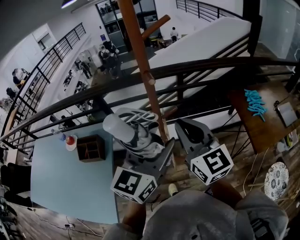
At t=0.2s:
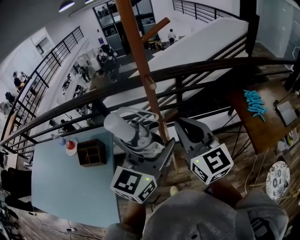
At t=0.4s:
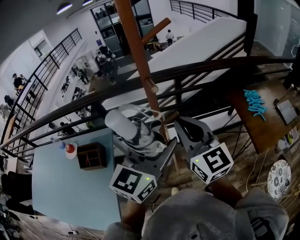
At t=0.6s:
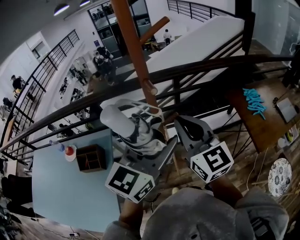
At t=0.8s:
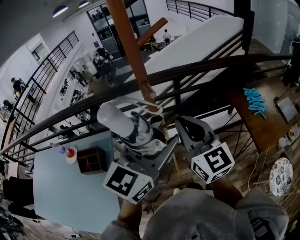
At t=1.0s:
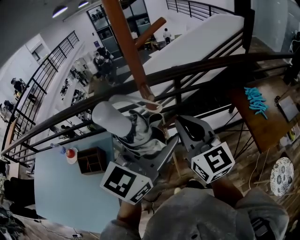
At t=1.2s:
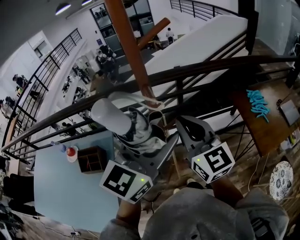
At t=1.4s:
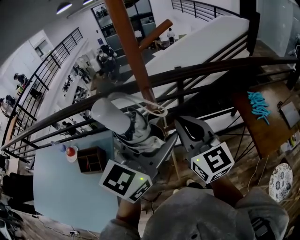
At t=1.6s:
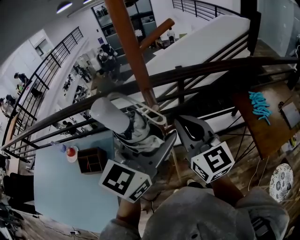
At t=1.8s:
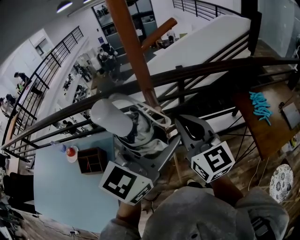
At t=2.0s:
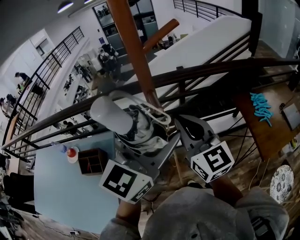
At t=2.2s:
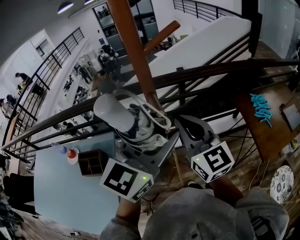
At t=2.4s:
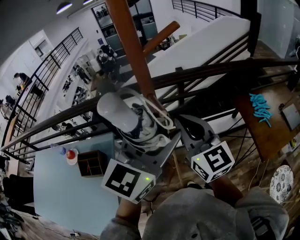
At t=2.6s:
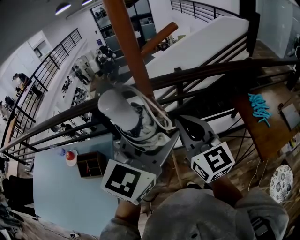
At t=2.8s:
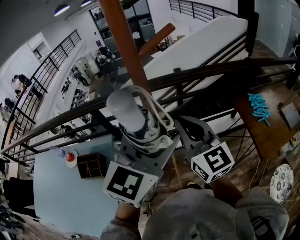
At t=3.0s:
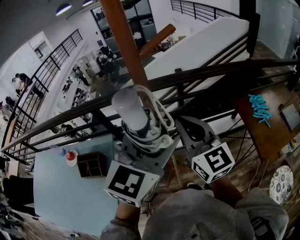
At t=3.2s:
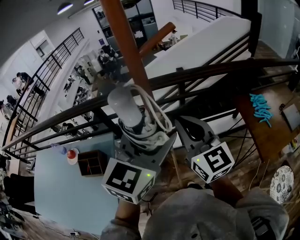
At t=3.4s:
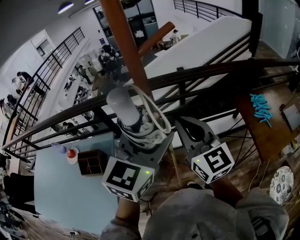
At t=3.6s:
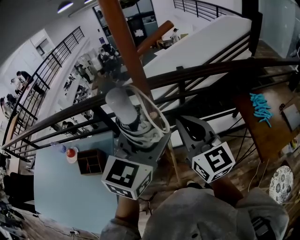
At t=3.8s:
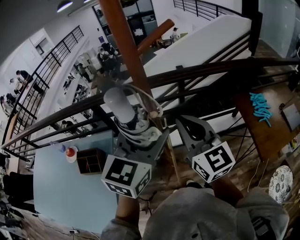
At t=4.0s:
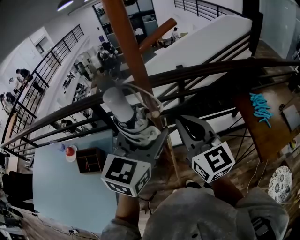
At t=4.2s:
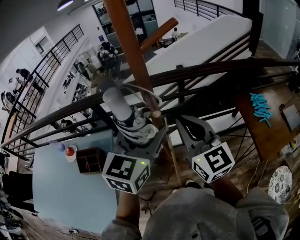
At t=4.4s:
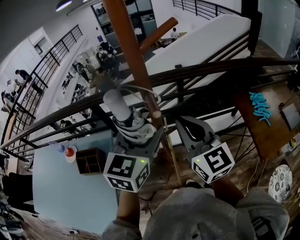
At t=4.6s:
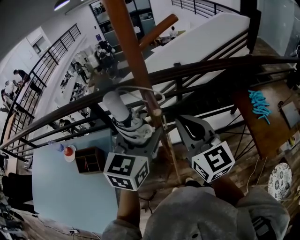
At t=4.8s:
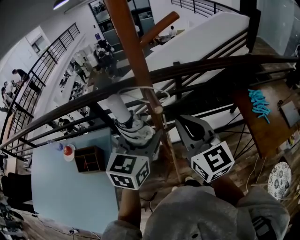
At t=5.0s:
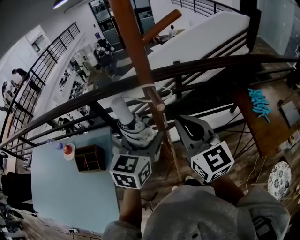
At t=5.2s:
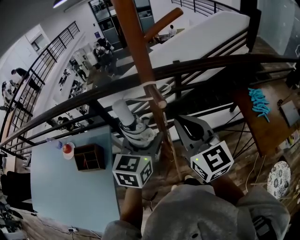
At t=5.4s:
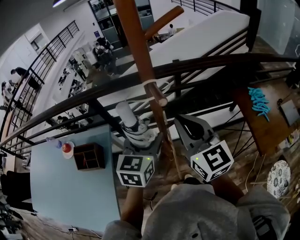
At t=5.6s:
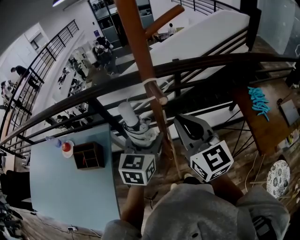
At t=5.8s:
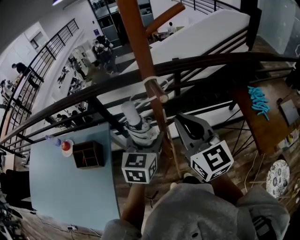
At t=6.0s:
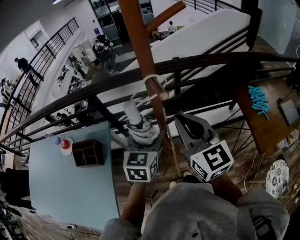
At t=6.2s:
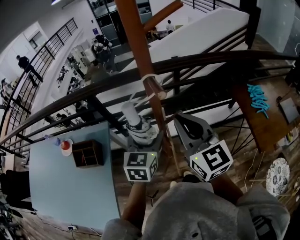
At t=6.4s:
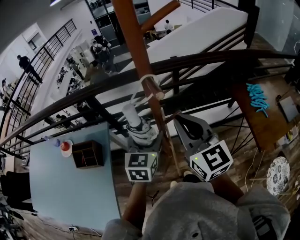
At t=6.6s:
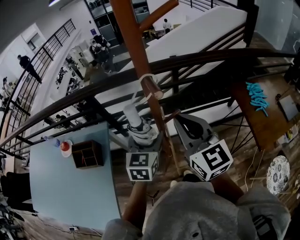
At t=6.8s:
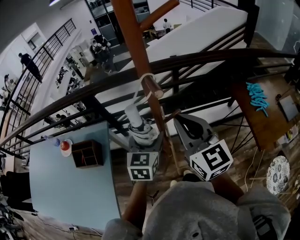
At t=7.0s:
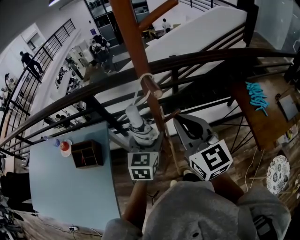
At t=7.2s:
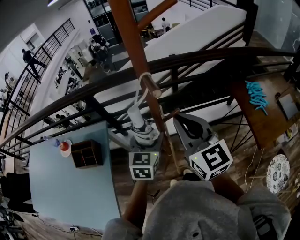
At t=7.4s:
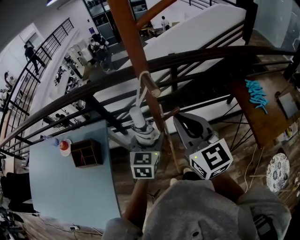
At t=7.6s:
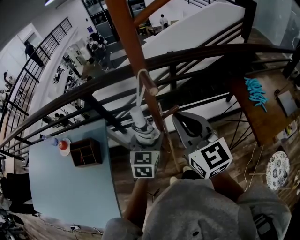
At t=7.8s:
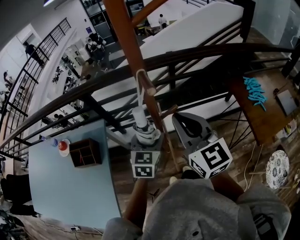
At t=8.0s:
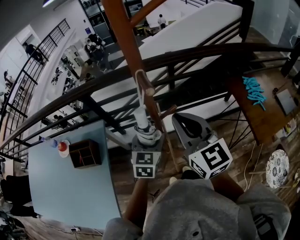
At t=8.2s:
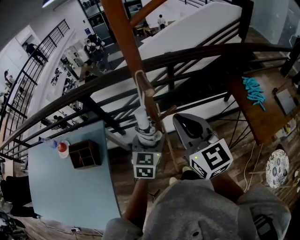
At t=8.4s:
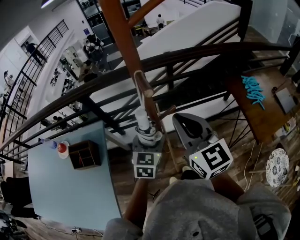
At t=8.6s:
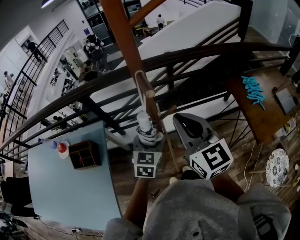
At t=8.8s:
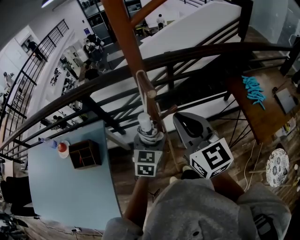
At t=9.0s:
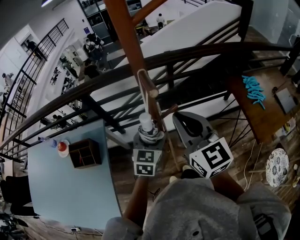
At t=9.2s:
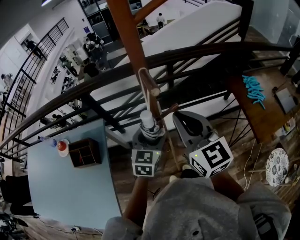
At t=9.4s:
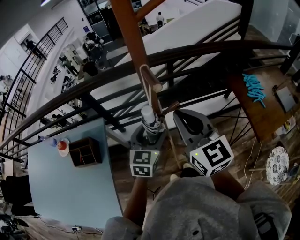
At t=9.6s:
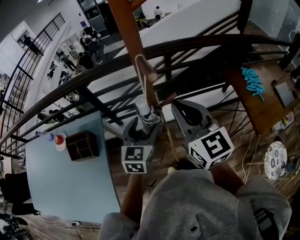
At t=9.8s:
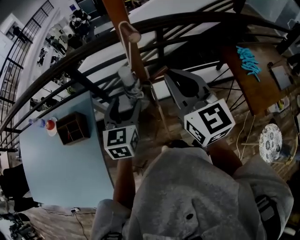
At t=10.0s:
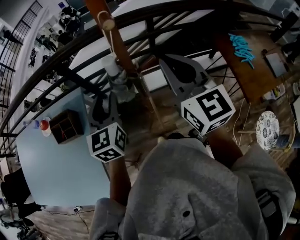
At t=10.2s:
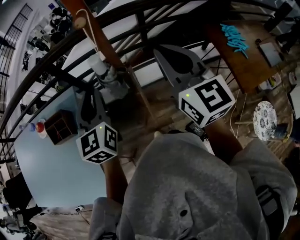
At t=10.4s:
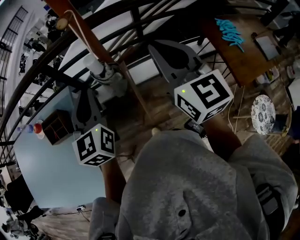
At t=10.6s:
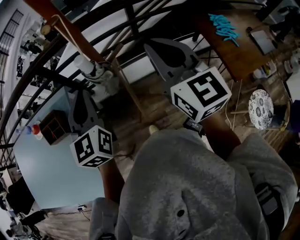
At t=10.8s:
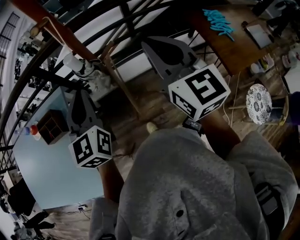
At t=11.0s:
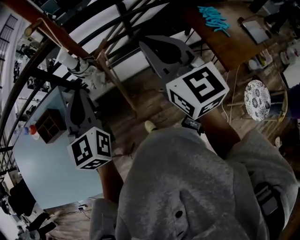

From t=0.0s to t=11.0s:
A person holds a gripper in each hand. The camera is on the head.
From t=0.0s to t=1.6s: The grippers both shift forward by roughly 10 cm.
From t=1.6s to t=3.2s: The grippers make only small movements.
From t=3.2s to t=4.8s: The left gripper shifts approximately 10 cm downward.
From t=4.8s to t=6.2s: The left gripper moves downward, roughly 10 cm.
From t=6.2s to t=7.8s: The left gripper moves downward, about 5 cm.
From t=7.8s to t=9.4s: The grippers move only a little.
From t=9.4s to t=11.0s: The right gripper moves to the right and backward, approximately 15 cm; the left gripper is displaced backward and upward by roughly 15 cm, changes its angle by roughly 20 degrees, and closes up.

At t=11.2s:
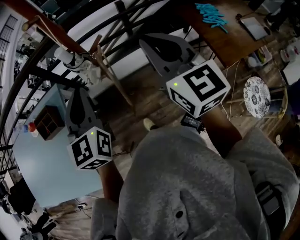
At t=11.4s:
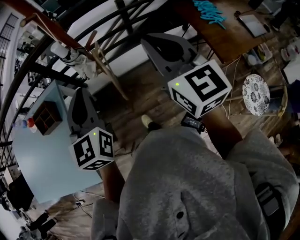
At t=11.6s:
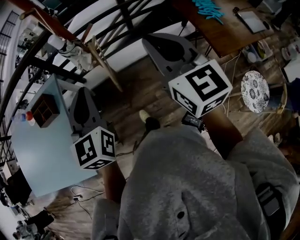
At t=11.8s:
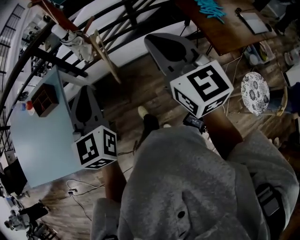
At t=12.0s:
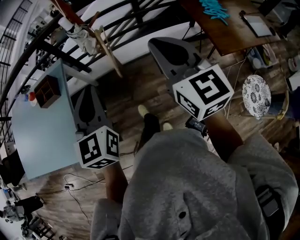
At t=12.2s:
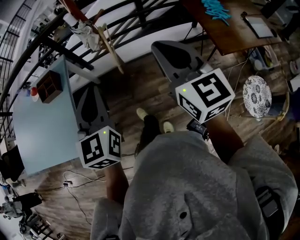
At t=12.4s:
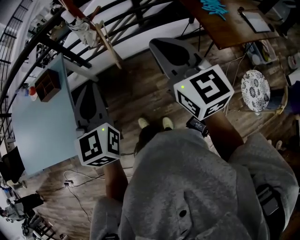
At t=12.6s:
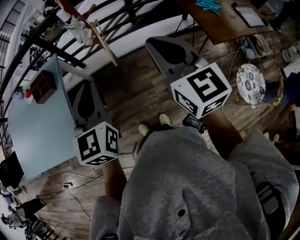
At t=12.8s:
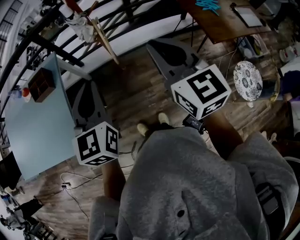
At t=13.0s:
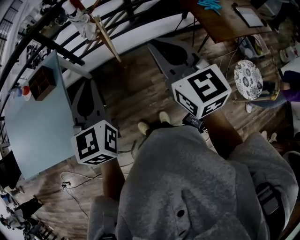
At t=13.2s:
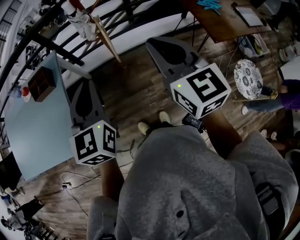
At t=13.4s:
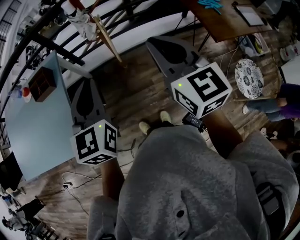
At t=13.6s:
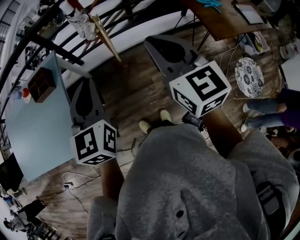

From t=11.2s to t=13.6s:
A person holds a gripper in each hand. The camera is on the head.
From t=11.2s to t=12.4s: Both grippers move backward, approximately 20 cm.
From t=12.4s to t=13.6s: The right gripper heads to the left, covering some 5 cm.

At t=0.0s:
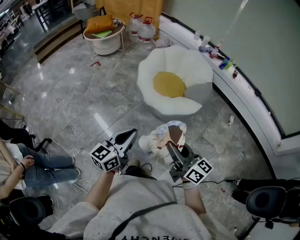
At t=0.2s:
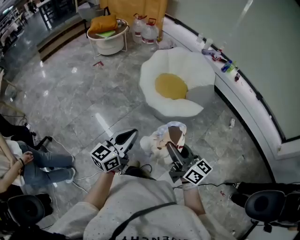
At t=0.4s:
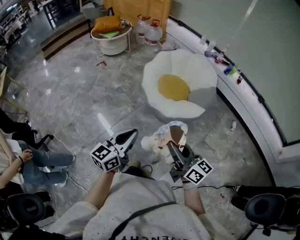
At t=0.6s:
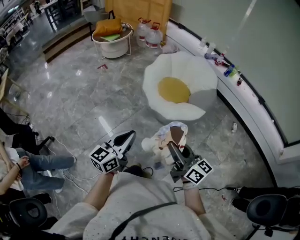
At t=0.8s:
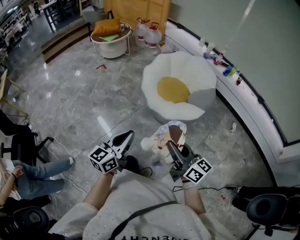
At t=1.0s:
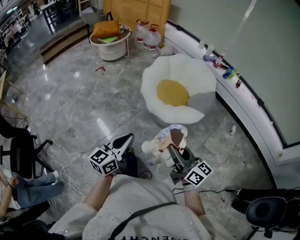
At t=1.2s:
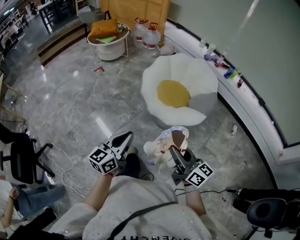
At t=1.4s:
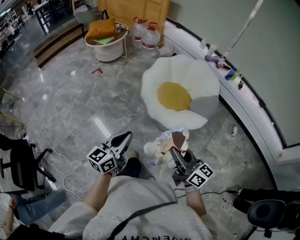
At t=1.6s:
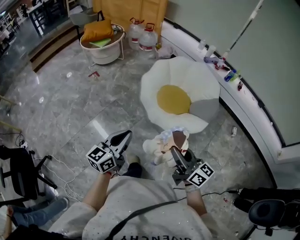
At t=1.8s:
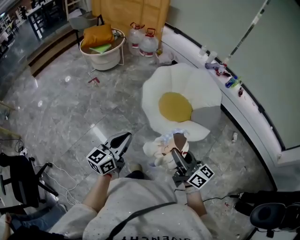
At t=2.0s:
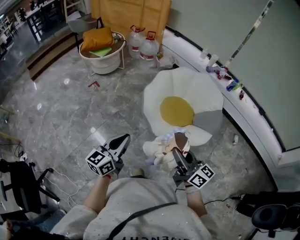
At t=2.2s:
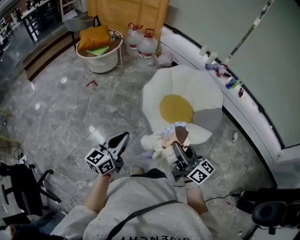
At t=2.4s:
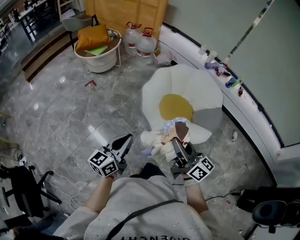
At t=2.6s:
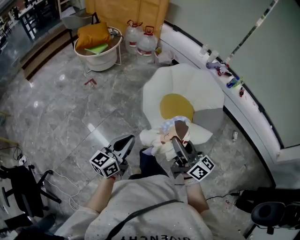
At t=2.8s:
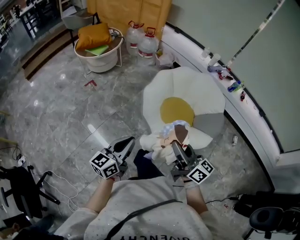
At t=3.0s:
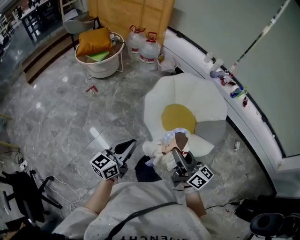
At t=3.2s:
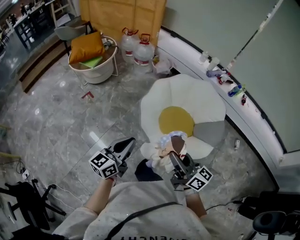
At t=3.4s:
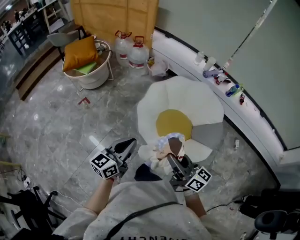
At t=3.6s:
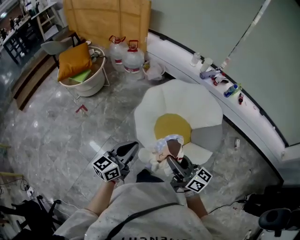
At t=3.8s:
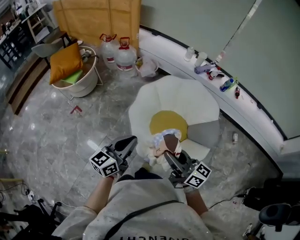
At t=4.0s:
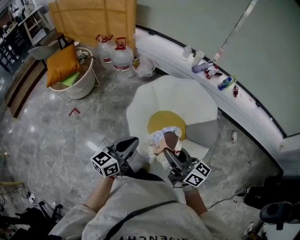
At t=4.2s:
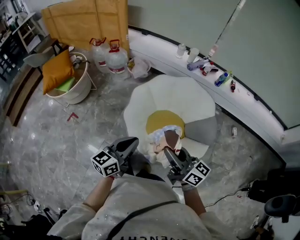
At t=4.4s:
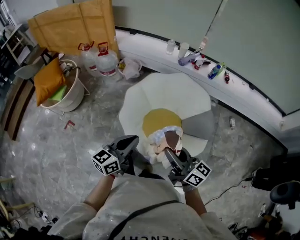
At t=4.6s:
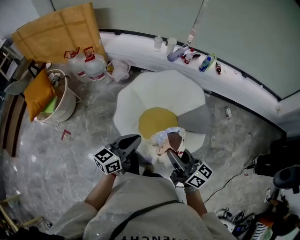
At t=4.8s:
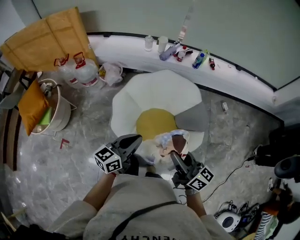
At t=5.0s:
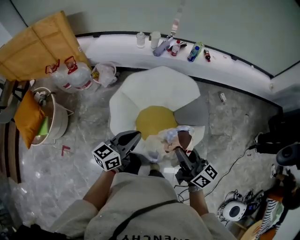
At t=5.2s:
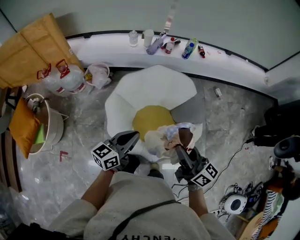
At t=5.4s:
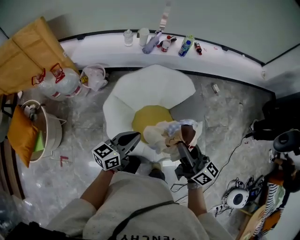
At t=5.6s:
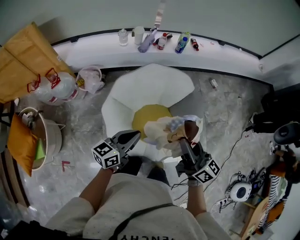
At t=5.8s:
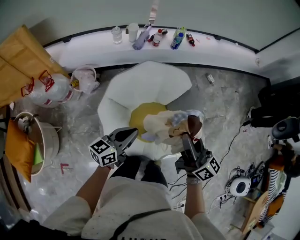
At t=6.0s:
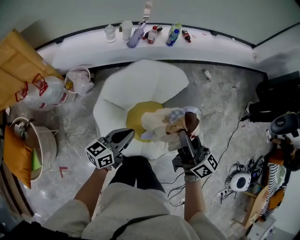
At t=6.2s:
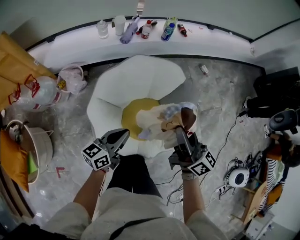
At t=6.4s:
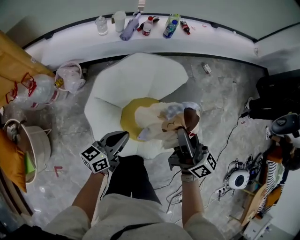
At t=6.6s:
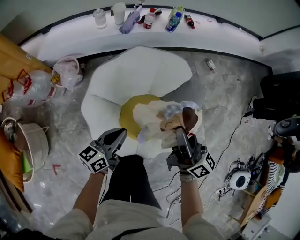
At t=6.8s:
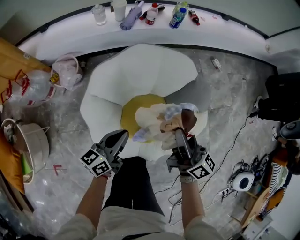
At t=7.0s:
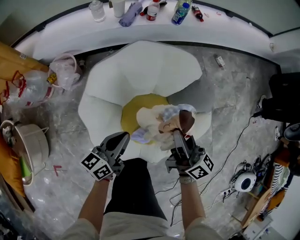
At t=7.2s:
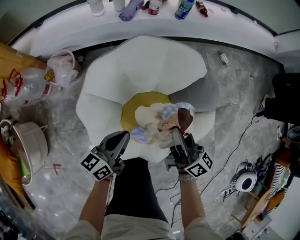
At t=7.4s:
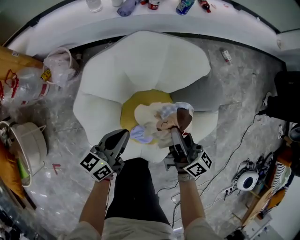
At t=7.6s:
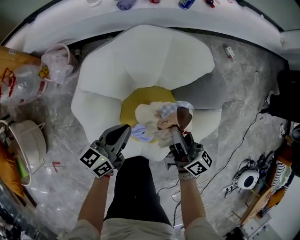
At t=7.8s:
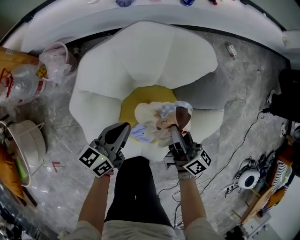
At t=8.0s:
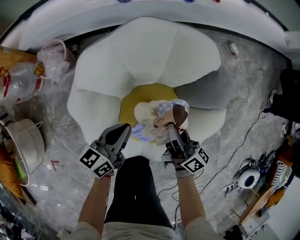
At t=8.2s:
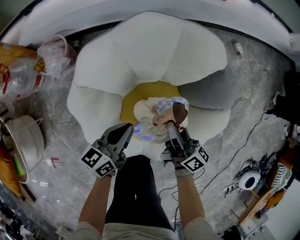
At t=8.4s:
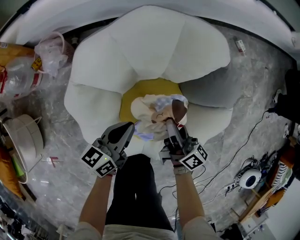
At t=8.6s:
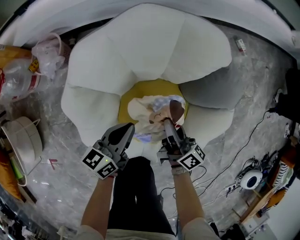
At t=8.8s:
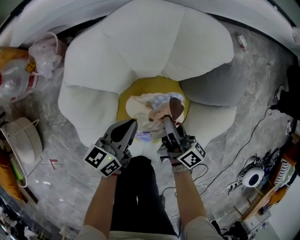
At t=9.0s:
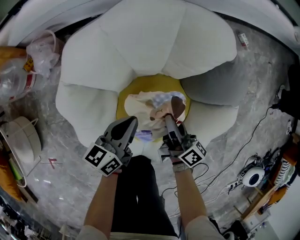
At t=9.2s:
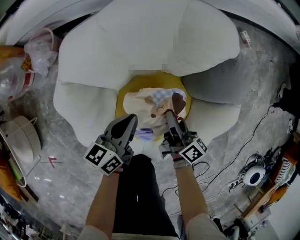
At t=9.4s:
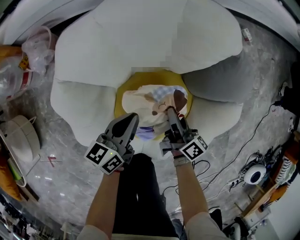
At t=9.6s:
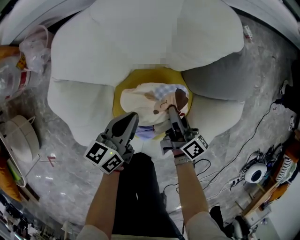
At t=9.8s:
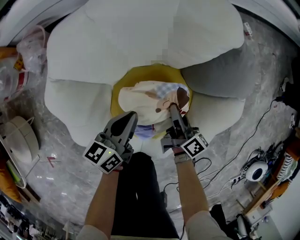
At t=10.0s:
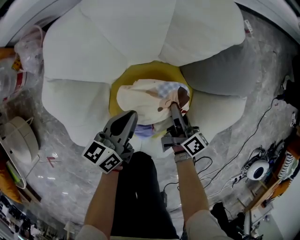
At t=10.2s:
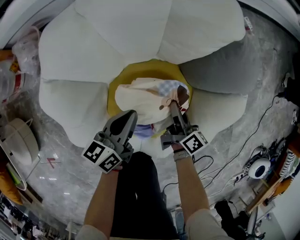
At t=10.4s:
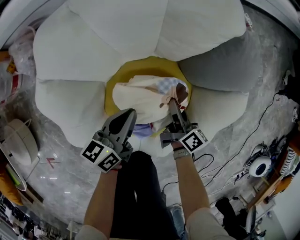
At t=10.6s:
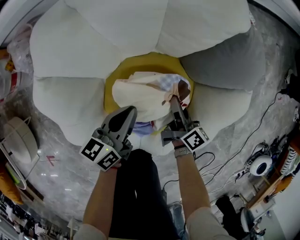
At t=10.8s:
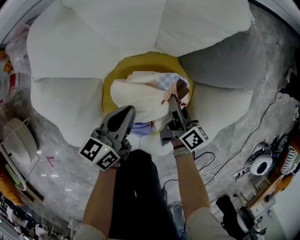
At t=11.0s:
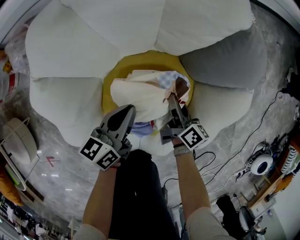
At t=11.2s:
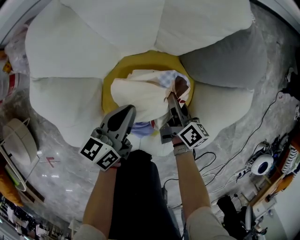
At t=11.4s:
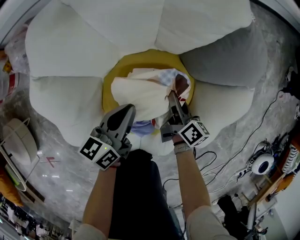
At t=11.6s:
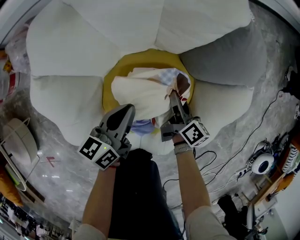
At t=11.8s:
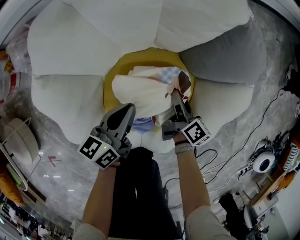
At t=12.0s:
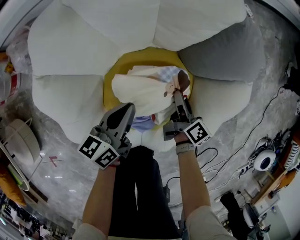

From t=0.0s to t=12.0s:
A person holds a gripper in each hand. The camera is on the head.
From t=0.0s to t=1.6s: The right gripper is displaced forward by some 20 cm. The left gripper goes some 25 cm forward and to the left.
From t=1.6s to t=3.0s: The grippers both shift forward by approximately 25 cm.
From t=3.0s to t=4.4s: The right gripper shifts roughly 20 cm forward, while the left gripper is displaced forward and to the right by roughly 30 cm, and swivels approximately 20 degrees.
From t=4.4s to t=6.0s: The right gripper changes place by some 25 cm, and changes its angle by some 50 degrees, while the left gripper shifts by approximately 30 cm, and rotates approximately 40 degrees.
From t=6.0s to t=7.6s: The left gripper heads downward and forward, covering about 30 cm, while the right gripper travels downward by approximately 35 cm.
From t=7.6s to t=9.0s: Both grippers travel together downward, approximately 15 cm.
From t=9.0s to t=10.4s: The right gripper moves downward and to the right, roughly 15 cm. The left gripper moves downward, some 10 cm.
From t=10.4s to t=12.0s: The right gripper opens its fingers.
